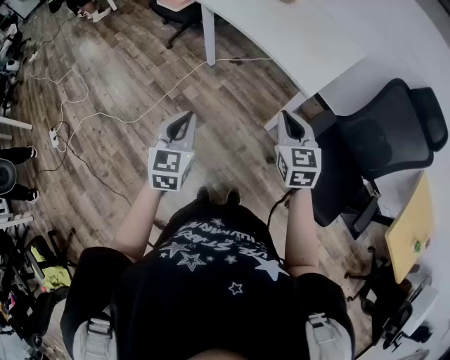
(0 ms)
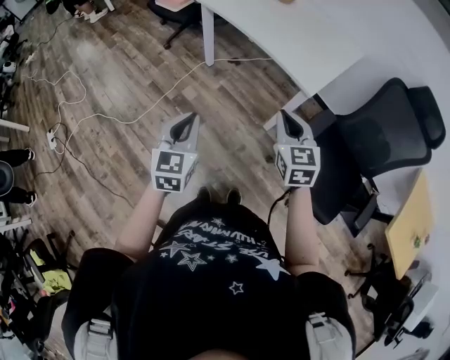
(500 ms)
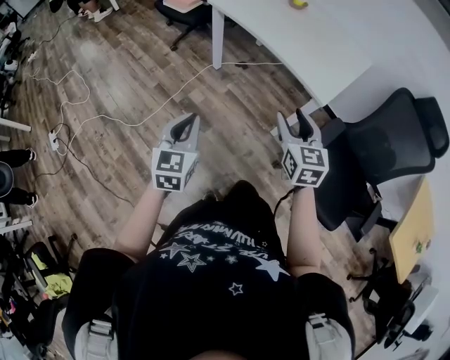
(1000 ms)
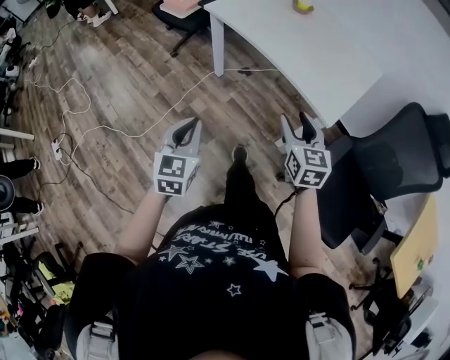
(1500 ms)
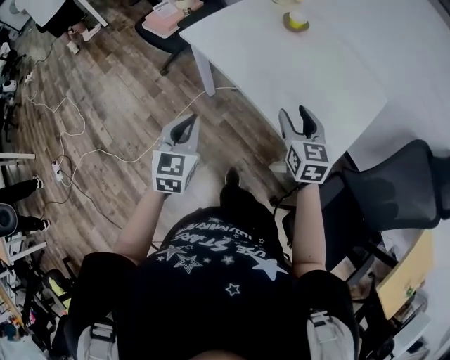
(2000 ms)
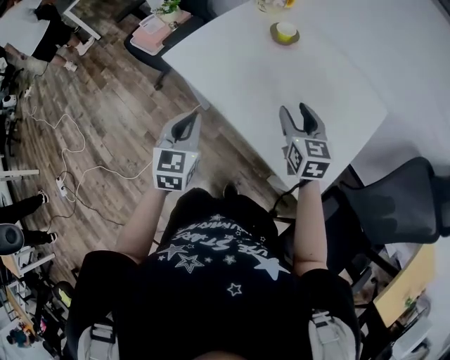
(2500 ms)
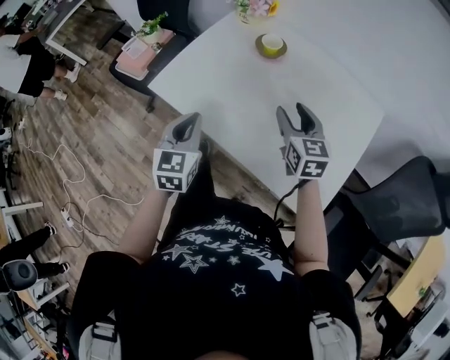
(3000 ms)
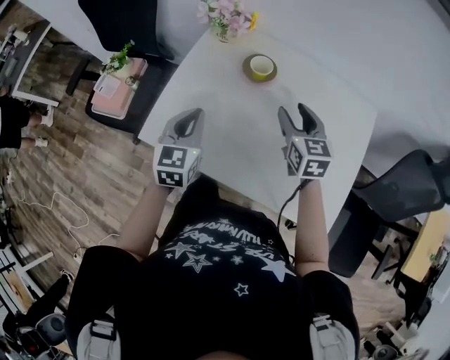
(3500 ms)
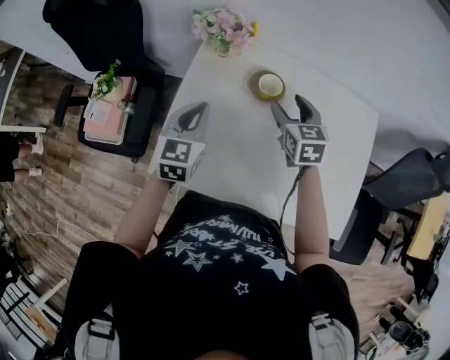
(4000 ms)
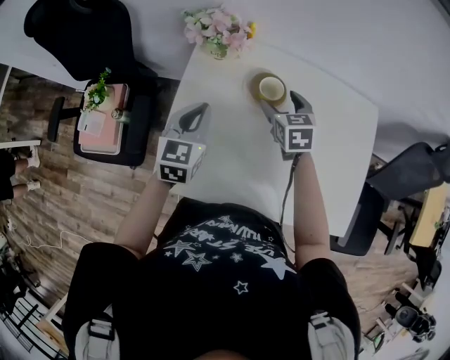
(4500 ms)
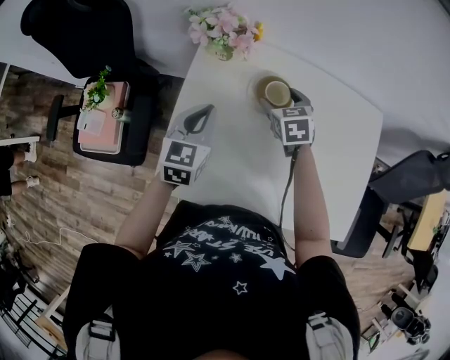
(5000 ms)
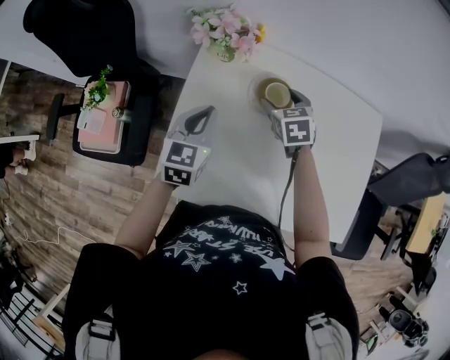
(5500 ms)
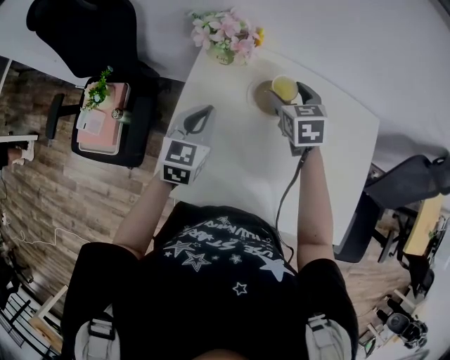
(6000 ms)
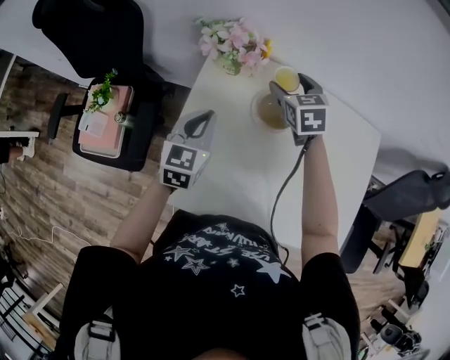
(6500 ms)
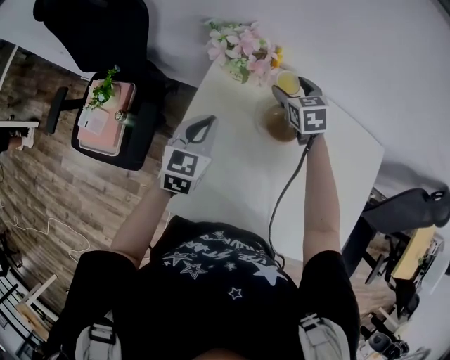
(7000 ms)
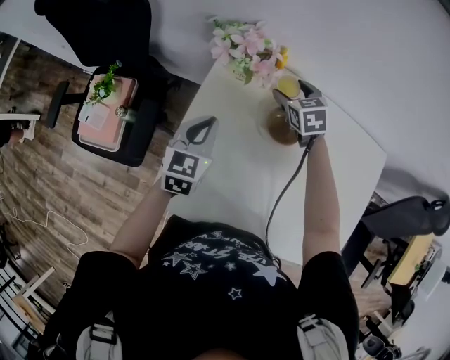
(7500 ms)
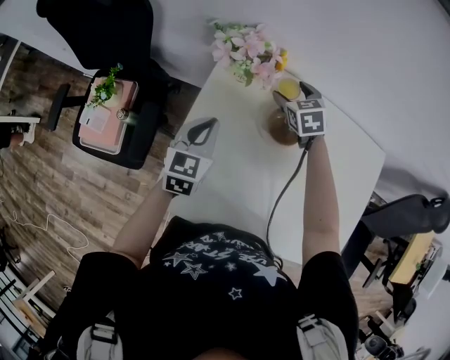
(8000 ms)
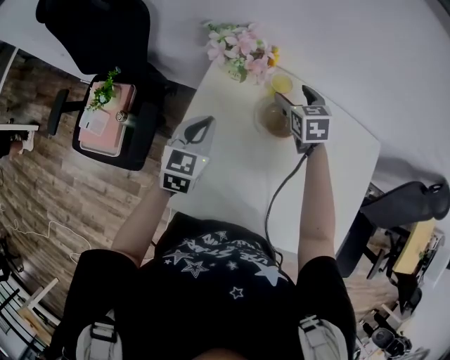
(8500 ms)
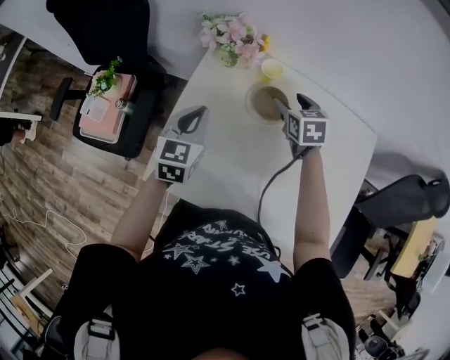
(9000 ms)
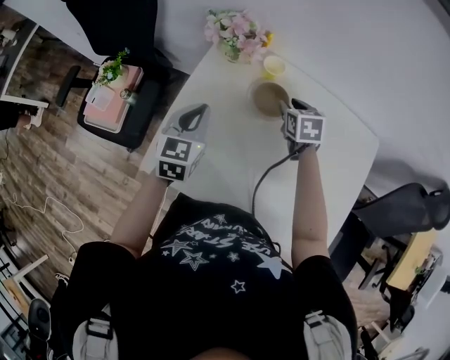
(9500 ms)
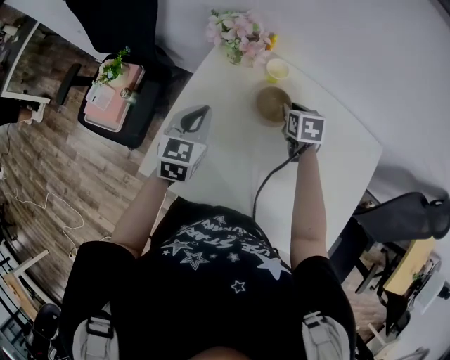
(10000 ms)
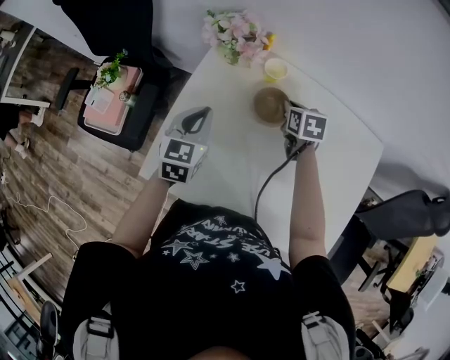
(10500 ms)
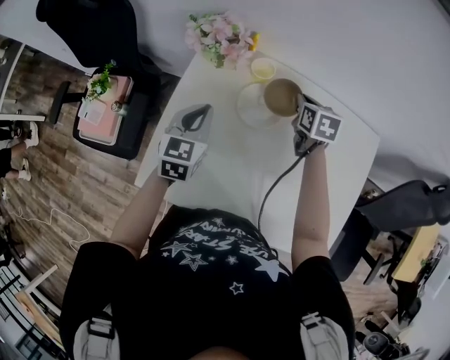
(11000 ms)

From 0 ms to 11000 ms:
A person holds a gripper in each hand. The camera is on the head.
From 0 ms to 2000 ms: Both grippers move forward, some 35 cm. The right gripper opens up.
From 2000 ms to 3500 ms: The two grippers go about 35 cm forward. The left gripper rotates some 20 degrees. Meanwhile the right gripper swivels about 20 degrees.
From 3500 ms to 5500 ms: The right gripper travels forward, to the left and downward by approximately 20 cm, and changes its angle by about 20 degrees. Meanwhile the left gripper travels forward by about 15 cm.
From 5500 ms to 7500 ms: The right gripper heads forward, covering roughly 10 cm.
From 7500 ms to 9000 ms: The right gripper is displaced backward and to the right by some 10 cm. The left gripper ends up roughly 5 cm from where it was.
From 9000 ms to 11000 ms: The left gripper ends up approximately 5 cm from where it was; the right gripper is displaced to the right by about 10 cm, and closes.

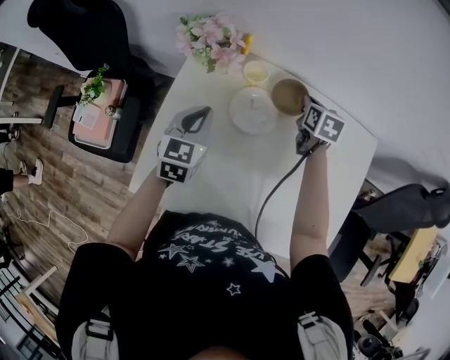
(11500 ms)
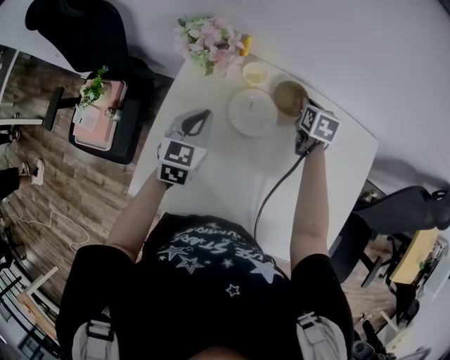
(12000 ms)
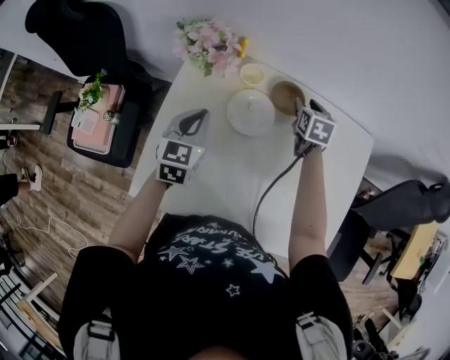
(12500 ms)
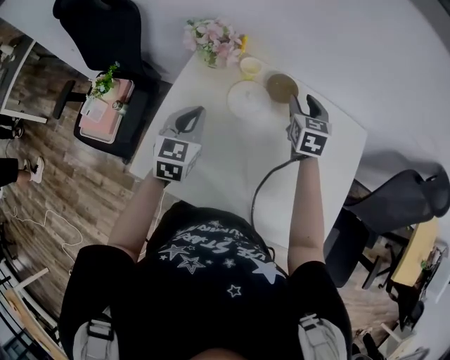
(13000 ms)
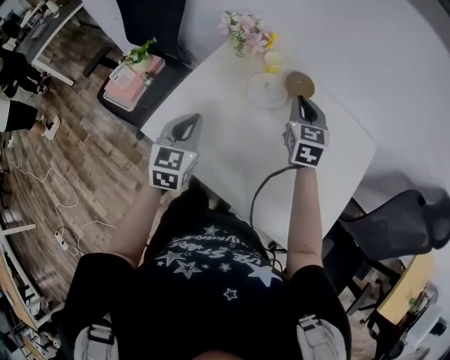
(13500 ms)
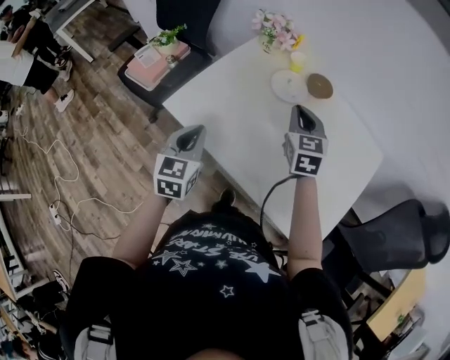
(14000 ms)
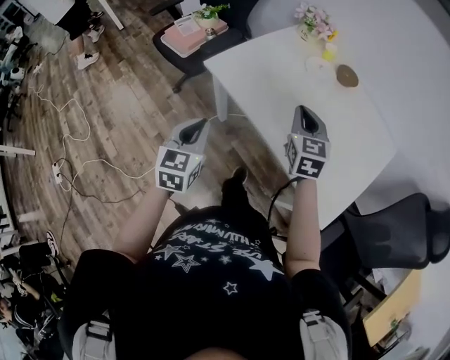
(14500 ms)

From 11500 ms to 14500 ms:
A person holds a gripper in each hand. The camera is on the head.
From 11500 ms to 13000 ms: The left gripper is displaced backward and upward by some 10 cm. Meanwhile the right gripper moves upward and backward, roughly 15 cm, changes its angle by about 20 degrees, and opens.
From 13000 ms to 14500 ms: The left gripper ends up some 40 cm from where it was, and turns by about 30 degrees, while the right gripper shifts by about 35 cm, rotates approximately 30 degrees, and closes.

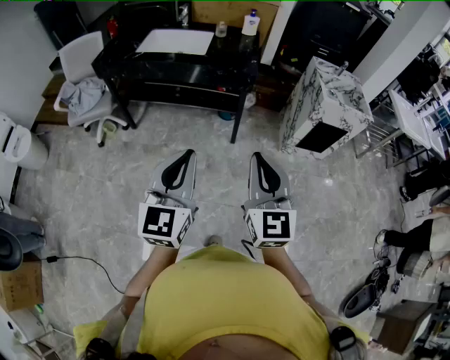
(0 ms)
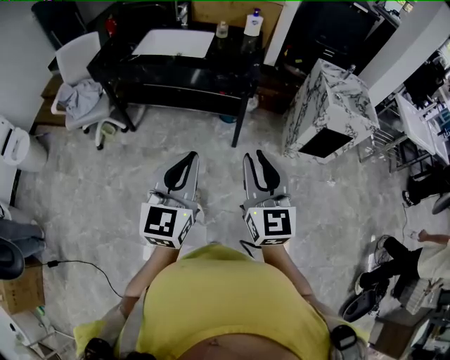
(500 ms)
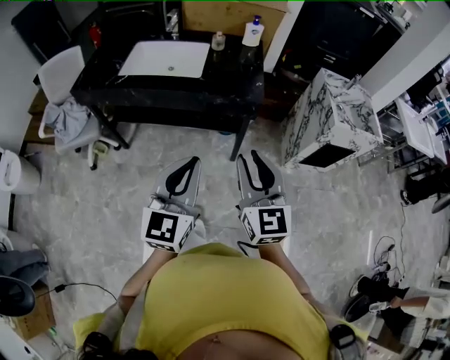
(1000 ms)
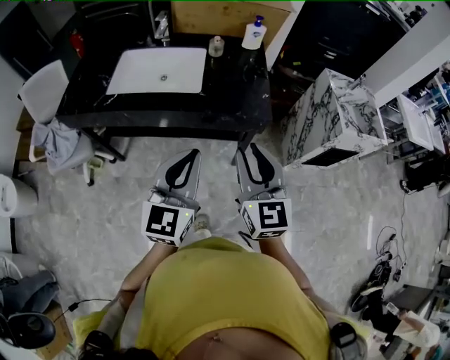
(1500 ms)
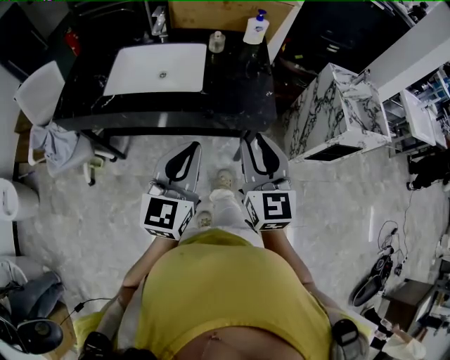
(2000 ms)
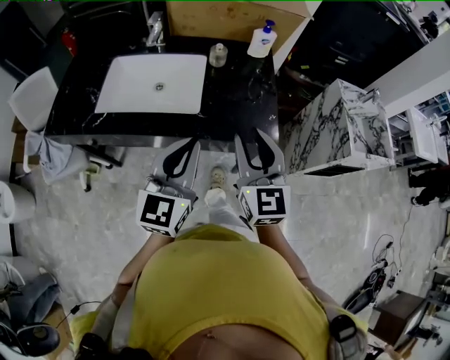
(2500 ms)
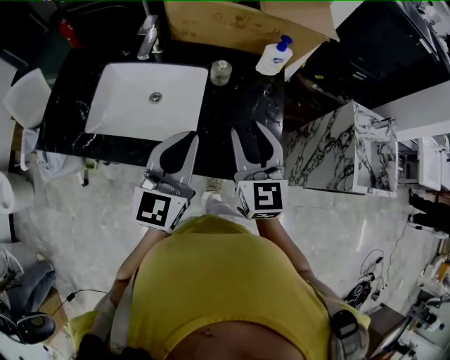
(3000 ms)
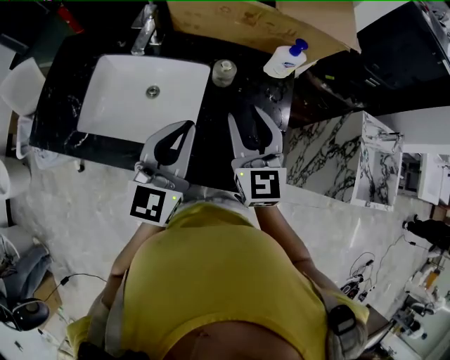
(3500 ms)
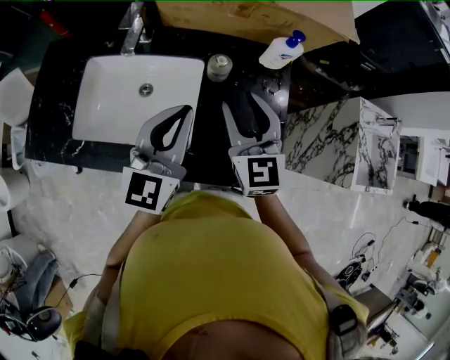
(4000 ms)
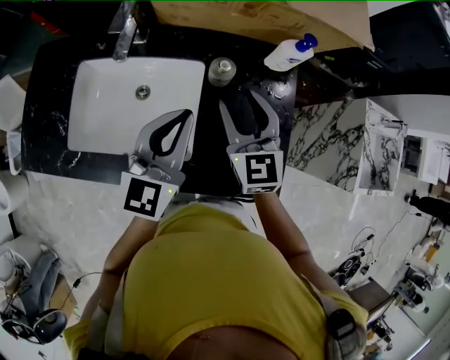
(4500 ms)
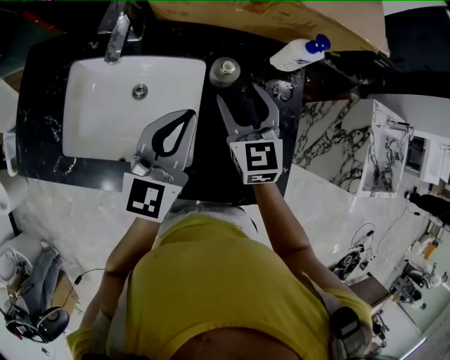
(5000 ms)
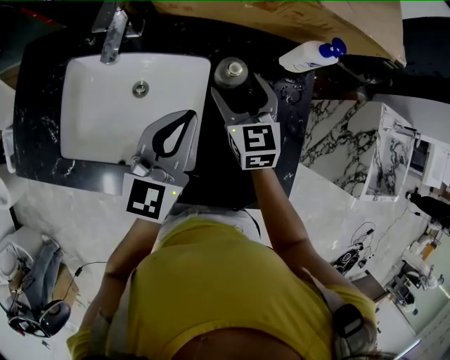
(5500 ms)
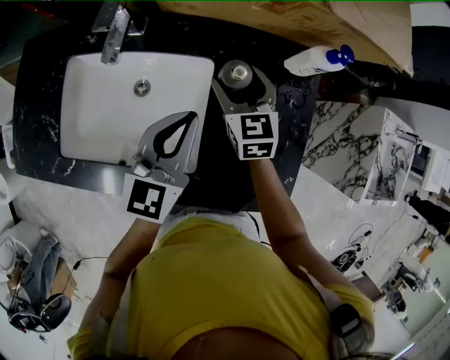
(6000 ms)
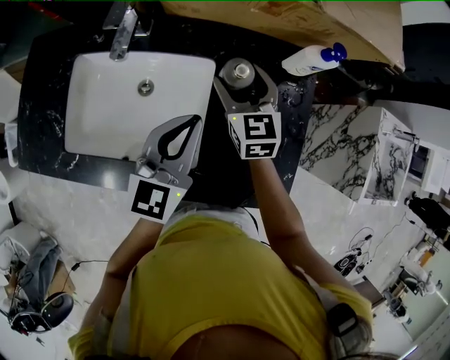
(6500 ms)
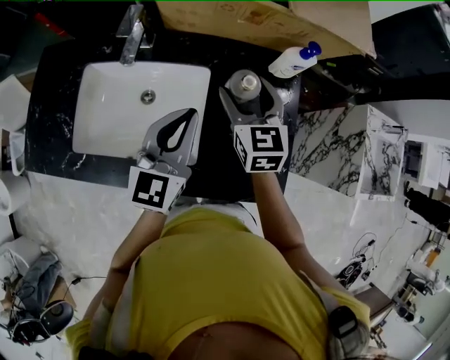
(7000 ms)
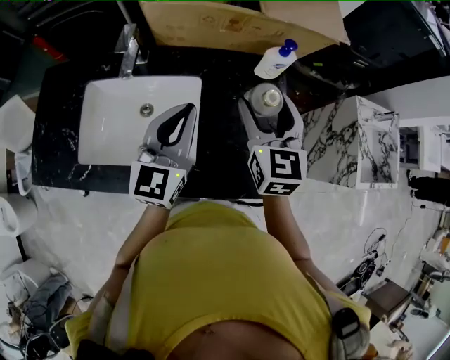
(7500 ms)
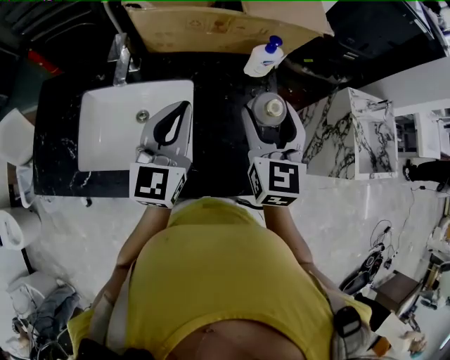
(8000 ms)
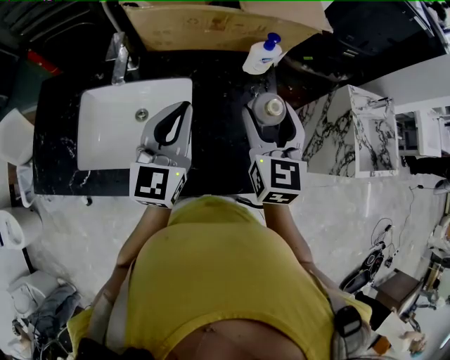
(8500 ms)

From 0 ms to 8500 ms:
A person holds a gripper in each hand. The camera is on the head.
From 0 ms to 2000 ms: The pair of grippers is taken forward, approximately 40 cm.
From 2000 ms to 4000 ms: Both grippers move forward, approximately 40 cm.
From 4000 ms to 6500 ms: The left gripper moves downward and forward, about 10 cm; the right gripper is displaced forward and downward by some 20 cm, and opens up.
From 6500 ms to 8500 ms: The right gripper heads upward, to the right and backward, covering about 25 cm, and changes its angle by approximately 20 degrees. The left gripper is displaced upward by some 10 cm.

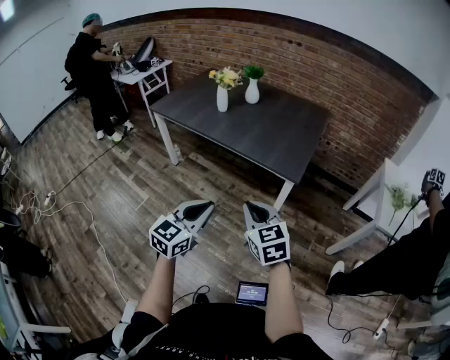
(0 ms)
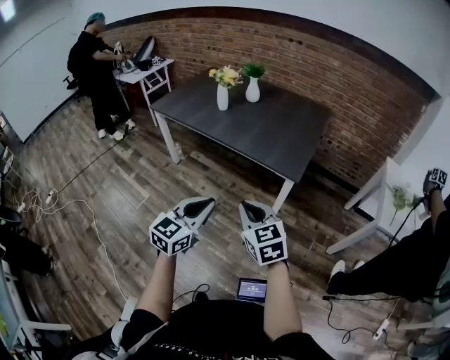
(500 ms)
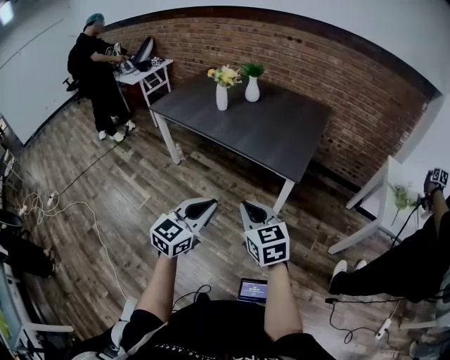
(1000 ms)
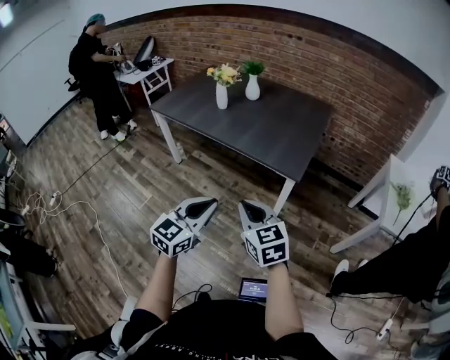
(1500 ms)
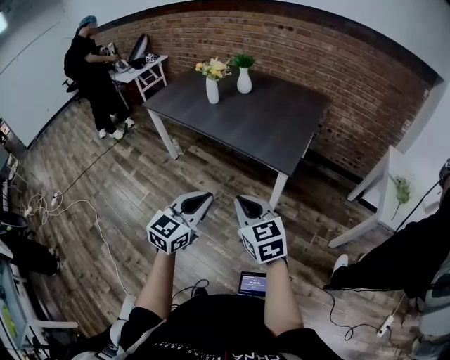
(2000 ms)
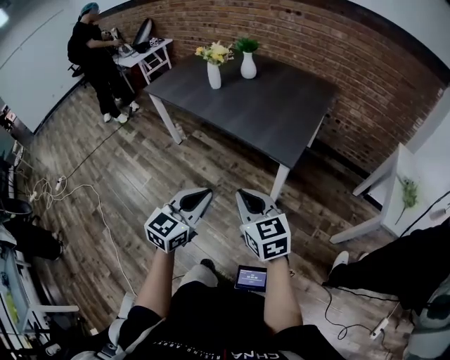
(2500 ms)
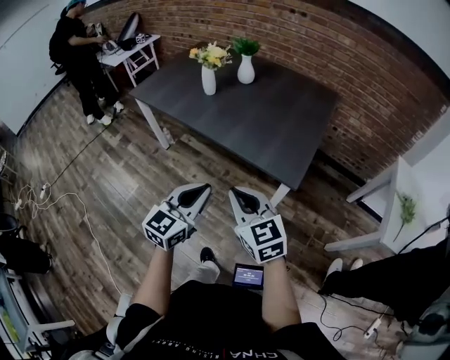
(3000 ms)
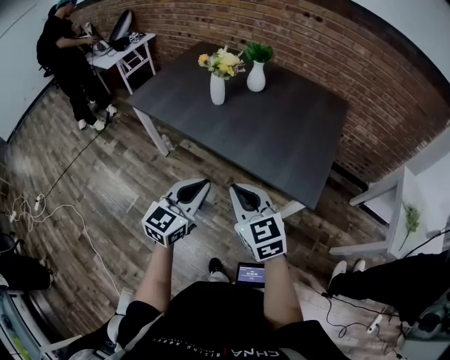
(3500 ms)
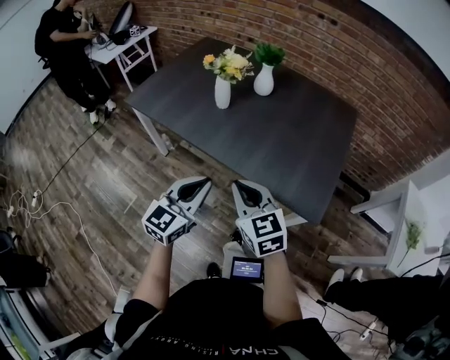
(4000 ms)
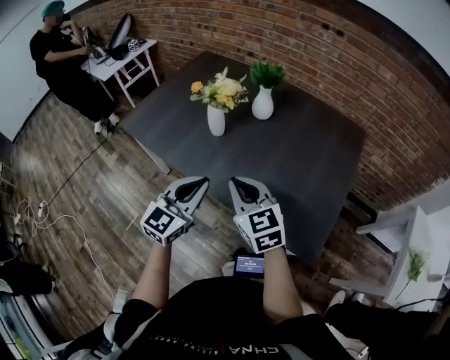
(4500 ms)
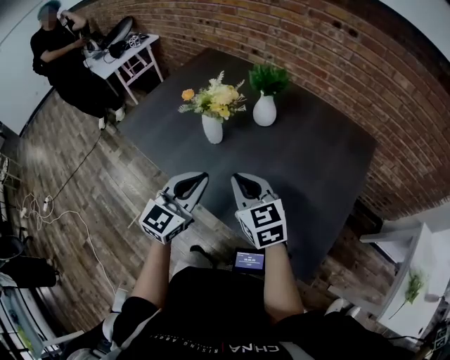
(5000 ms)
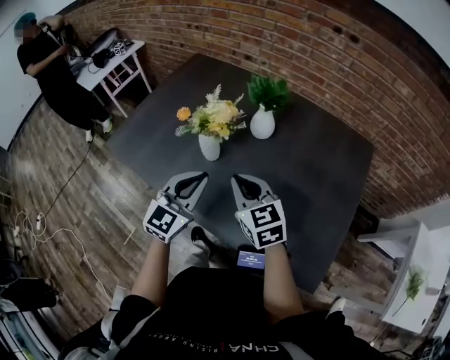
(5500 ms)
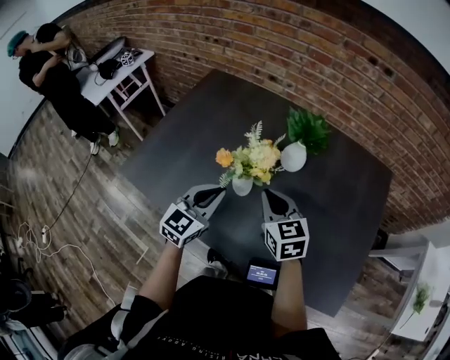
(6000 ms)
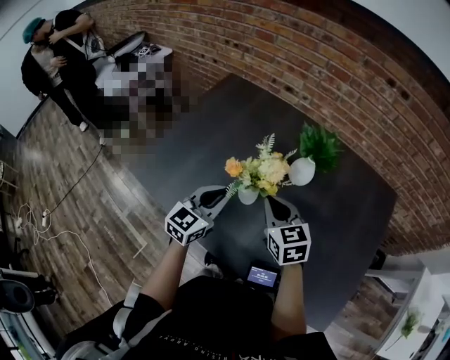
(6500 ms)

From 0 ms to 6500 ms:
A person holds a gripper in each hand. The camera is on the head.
From 0 ms to 2000 ms: Both grippers move to the right, roughly 5 cm.
From 2000 ms to 4500 ms: The pair of grippers is taken forward, about 50 cm.
From 4500 ms to 6500 ms: Both grippers move forward, approximately 30 cm.
